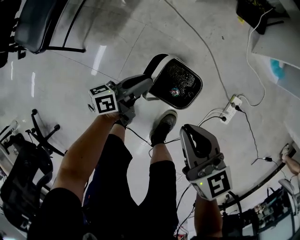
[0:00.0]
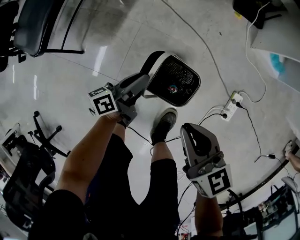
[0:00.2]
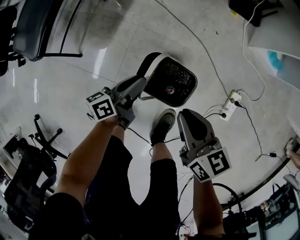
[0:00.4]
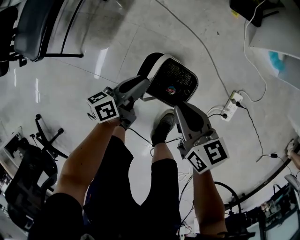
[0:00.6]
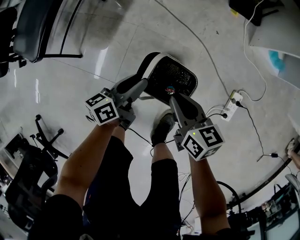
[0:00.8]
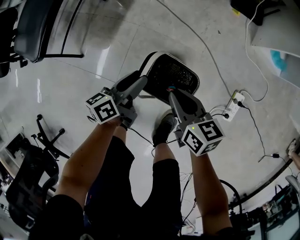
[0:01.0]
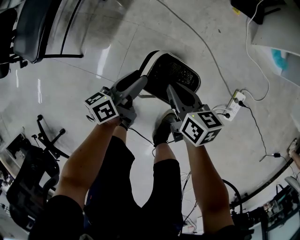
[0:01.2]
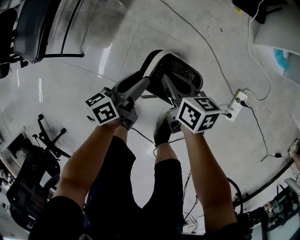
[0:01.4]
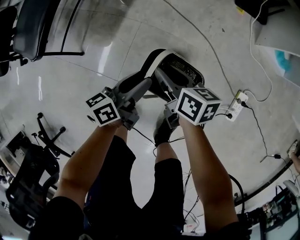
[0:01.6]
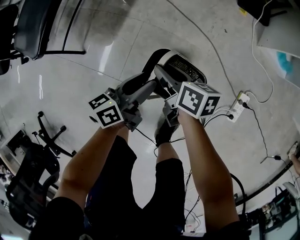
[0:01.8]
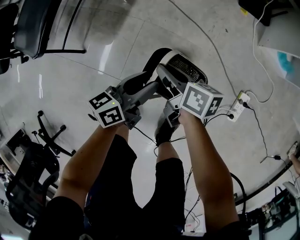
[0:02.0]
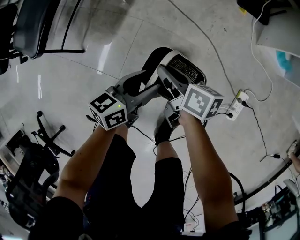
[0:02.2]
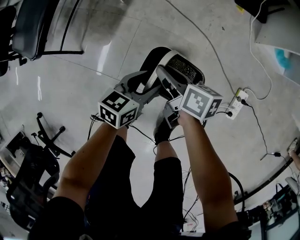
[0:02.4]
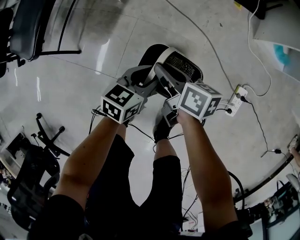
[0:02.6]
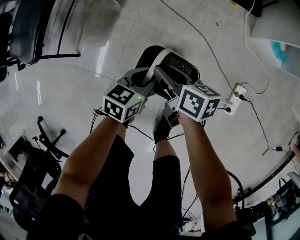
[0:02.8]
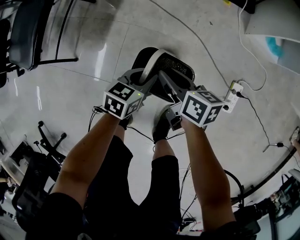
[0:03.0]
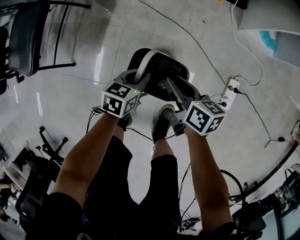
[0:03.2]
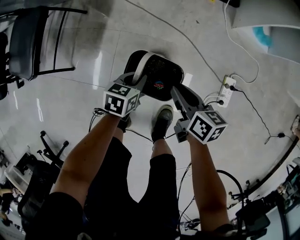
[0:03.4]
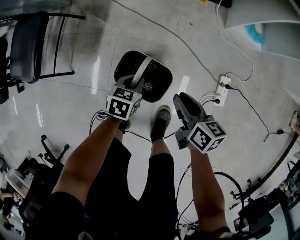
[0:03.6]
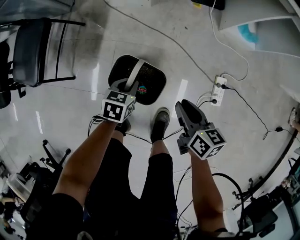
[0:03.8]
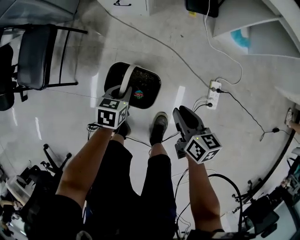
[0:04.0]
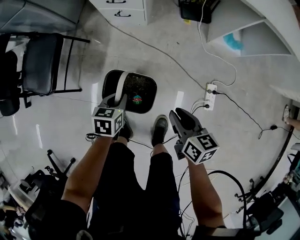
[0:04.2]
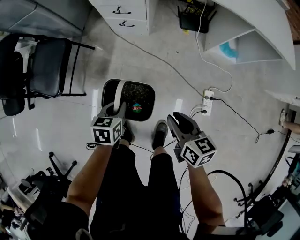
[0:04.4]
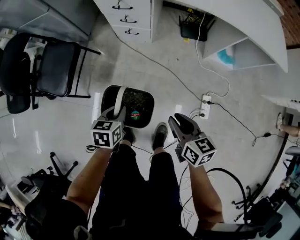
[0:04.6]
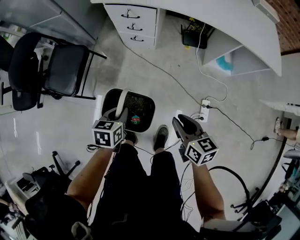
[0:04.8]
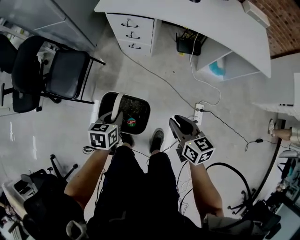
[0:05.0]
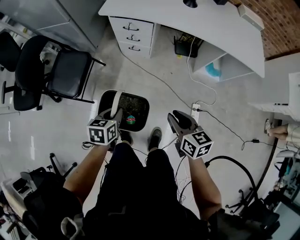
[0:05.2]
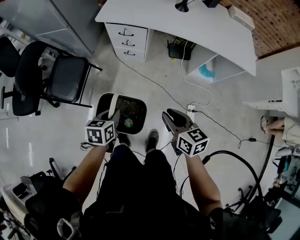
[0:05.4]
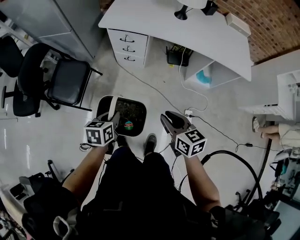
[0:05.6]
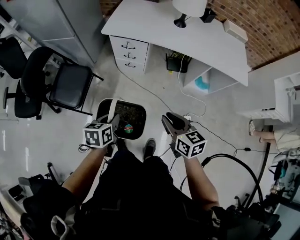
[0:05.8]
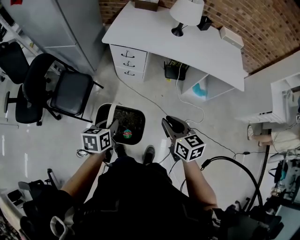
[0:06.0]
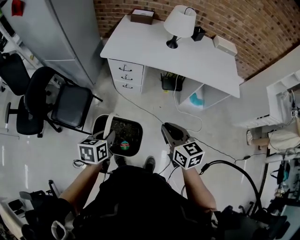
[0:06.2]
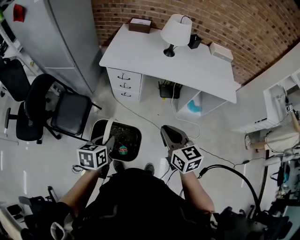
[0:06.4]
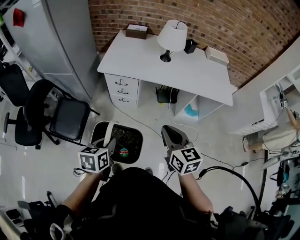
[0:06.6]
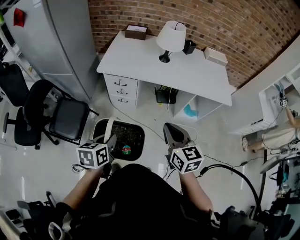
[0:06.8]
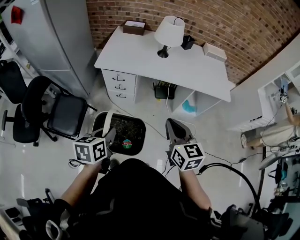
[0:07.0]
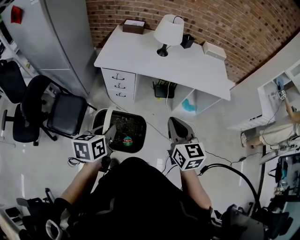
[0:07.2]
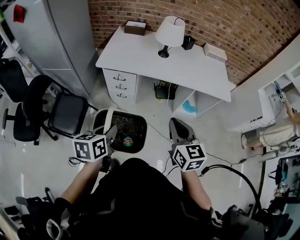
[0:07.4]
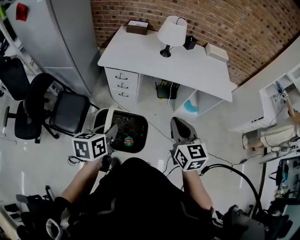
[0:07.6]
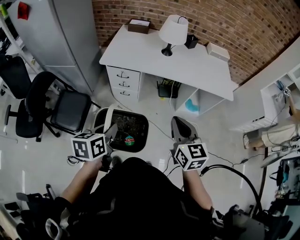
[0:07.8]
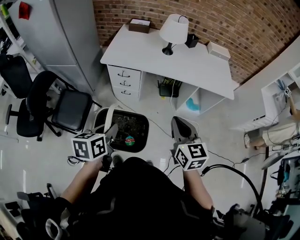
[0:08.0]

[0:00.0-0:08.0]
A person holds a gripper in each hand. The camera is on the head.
0:00.0 to 0:01.6: The left gripper opens up; the right gripper moves downward and forward, about 20 cm, changes its angle by about 30 degrees, and opens up.
0:01.6 to 0:03.2: The right gripper moves to the right, about 10 cm. The left gripper shifts about 5 cm to the right, swivels approximately 40 degrees, and closes its fingers.
0:03.2 to 0:04.8: The two grippers go approximately 35 cm upward. The right gripper rotates approximately 20 degrees.
0:04.8 to 0:06.4: Both grippers travel together upward, some 30 cm. The right gripper rotates about 20 degrees.
0:06.4 to 0:08.0: Both grippers travel together upward, roughly 5 cm.

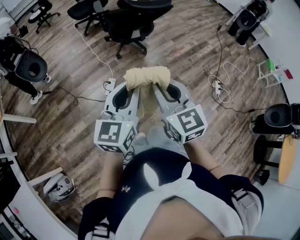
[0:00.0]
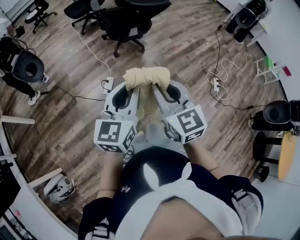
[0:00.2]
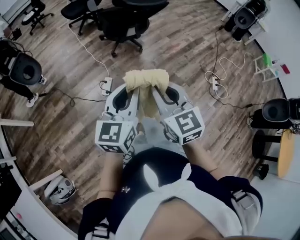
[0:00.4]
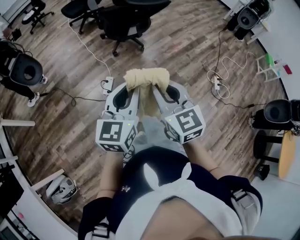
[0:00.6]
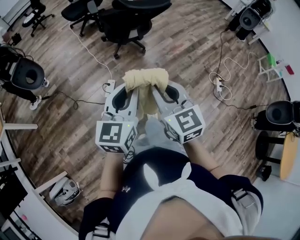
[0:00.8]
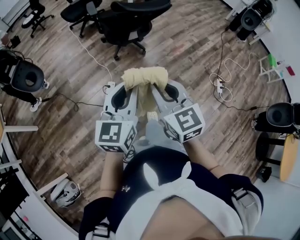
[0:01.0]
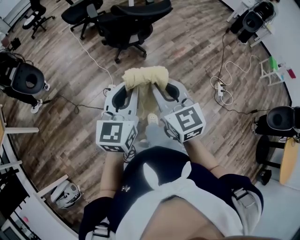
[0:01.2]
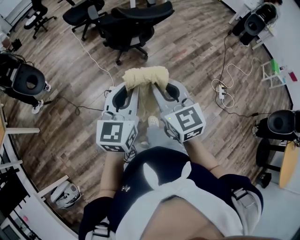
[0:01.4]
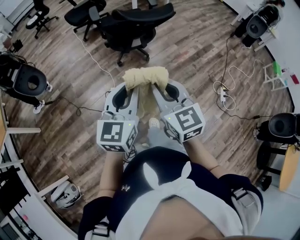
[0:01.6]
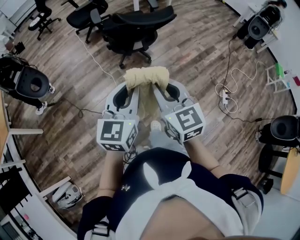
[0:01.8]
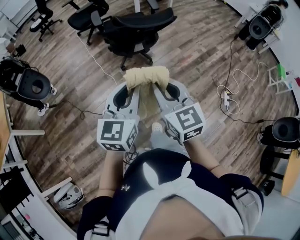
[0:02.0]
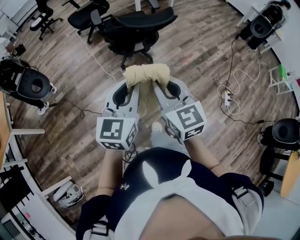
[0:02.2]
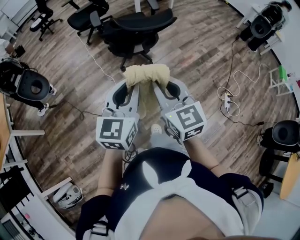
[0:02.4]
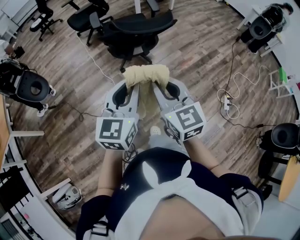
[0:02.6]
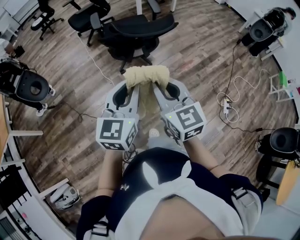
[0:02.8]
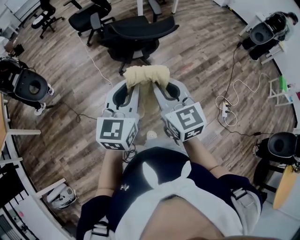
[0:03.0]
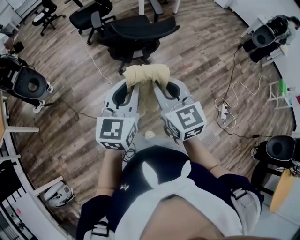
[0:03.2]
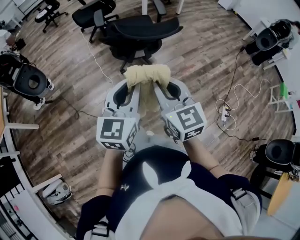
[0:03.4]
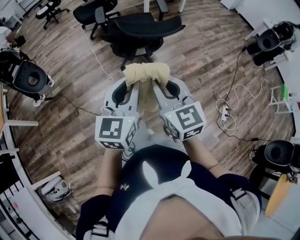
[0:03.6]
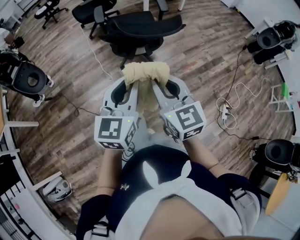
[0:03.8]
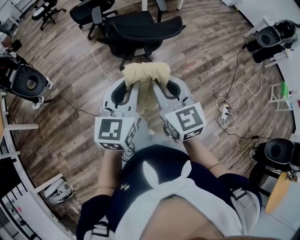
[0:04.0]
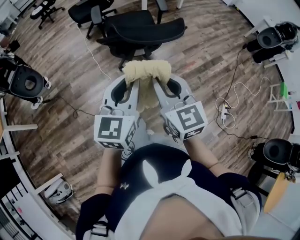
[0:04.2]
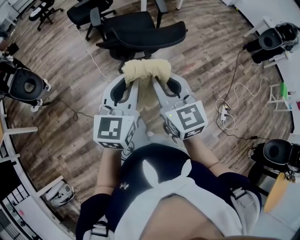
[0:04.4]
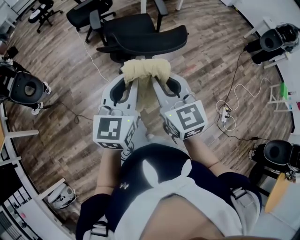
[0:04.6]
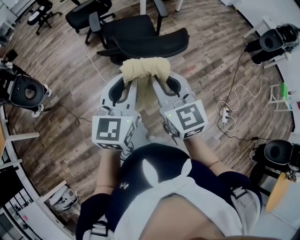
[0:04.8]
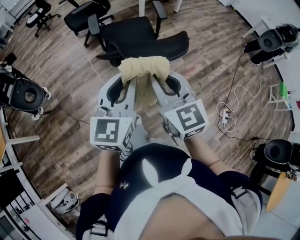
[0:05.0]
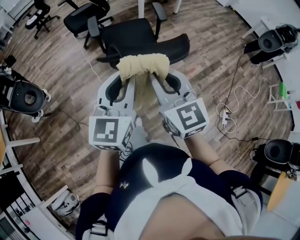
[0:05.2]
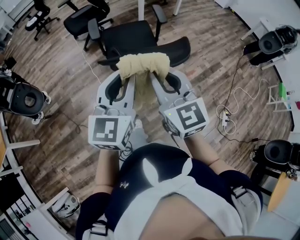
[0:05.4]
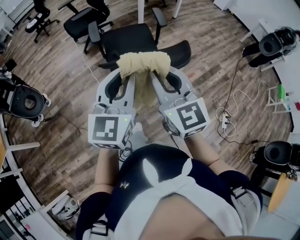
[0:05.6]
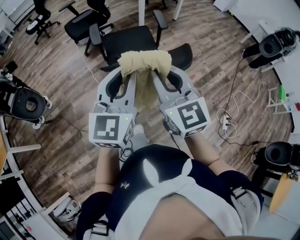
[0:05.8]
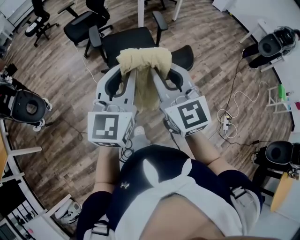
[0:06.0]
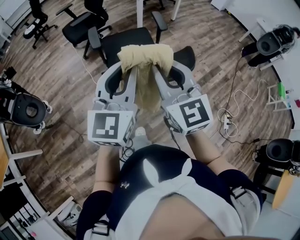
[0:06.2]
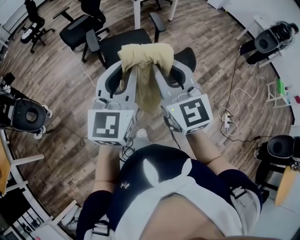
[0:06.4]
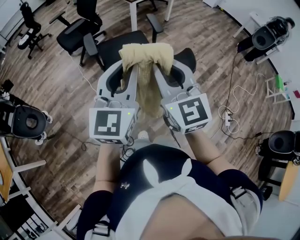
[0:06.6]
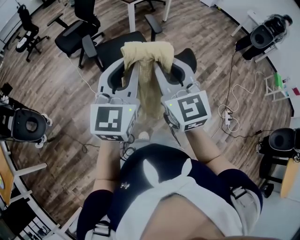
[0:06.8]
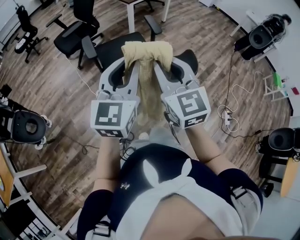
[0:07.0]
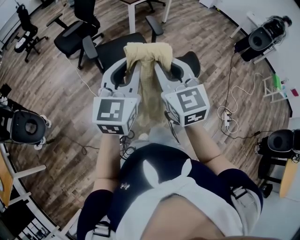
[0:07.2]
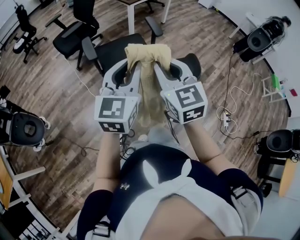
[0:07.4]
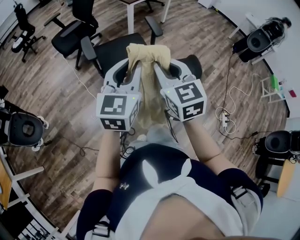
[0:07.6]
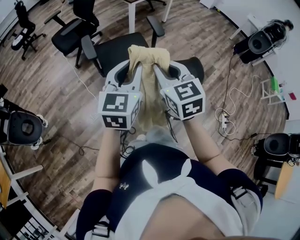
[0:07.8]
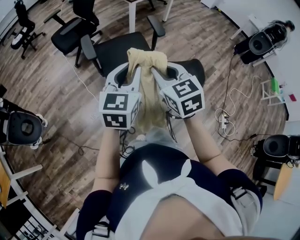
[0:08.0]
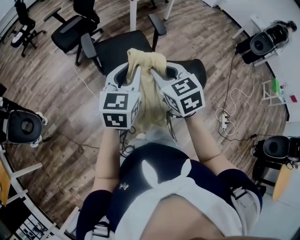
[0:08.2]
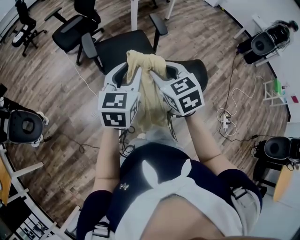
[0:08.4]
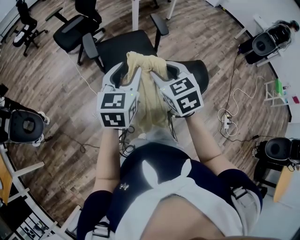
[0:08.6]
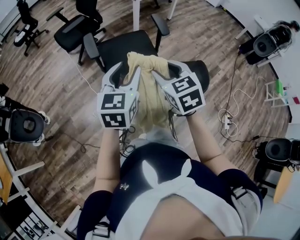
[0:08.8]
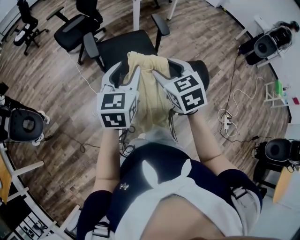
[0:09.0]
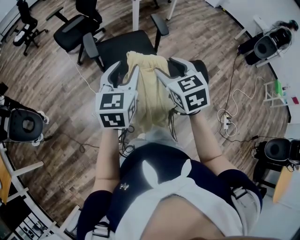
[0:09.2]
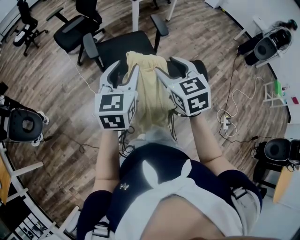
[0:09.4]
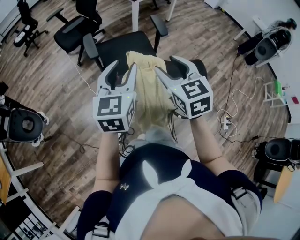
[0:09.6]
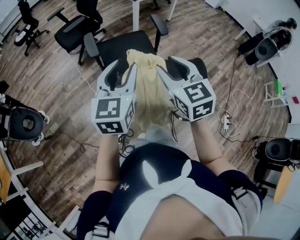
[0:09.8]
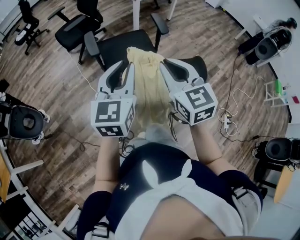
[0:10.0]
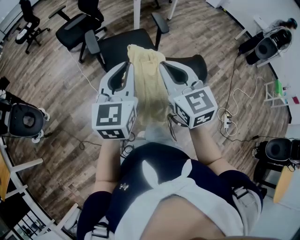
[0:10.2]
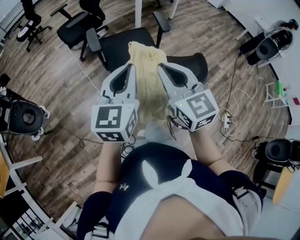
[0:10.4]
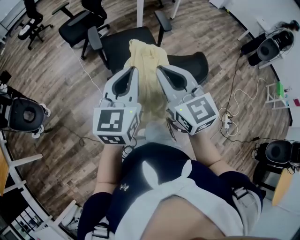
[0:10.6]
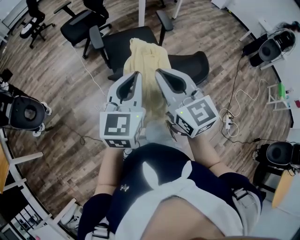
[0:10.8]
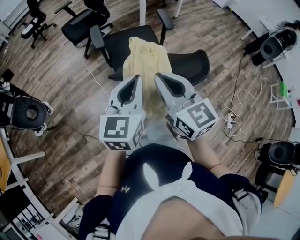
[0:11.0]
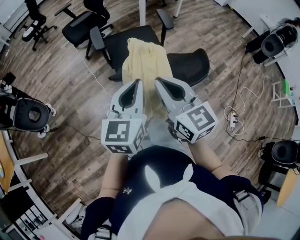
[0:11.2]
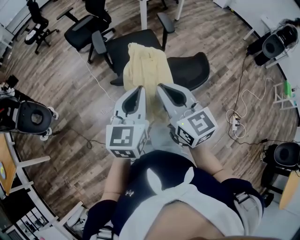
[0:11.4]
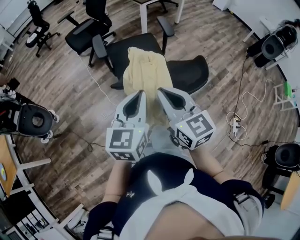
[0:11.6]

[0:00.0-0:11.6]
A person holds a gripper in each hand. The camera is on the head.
0:00.0 to 0:01.4: The two grippers go about 15 cm forward.
0:01.4 to 0:02.8: Both grippers travel together forward and to the right, some 15 cm.
0:02.8 to 0:04.4: The grippers both shift forward by roughly 15 cm.
0:04.4 to 0:05.8: The grippers both shift forward and upward by some 15 cm.
0:05.8 to 0:07.2: Both grippers travel together forward, some 10 cm.
0:07.2 to 0:08.8: The right gripper moves downward and forward, roughly 15 cm, turns by some 20 degrees, and opens up. Meanwhile the left gripper shifts roughly 10 cm forward and downward, and opens its fingers.
0:08.8 to 0:10.2: The left gripper shifts approximately 5 cm backward, and closes its fingers; the right gripper travels upward and backward by roughly 10 cm, turns by about 20 degrees, and closes.
0:10.2 to 0:11.6: The two grippers go approximately 10 cm backward.

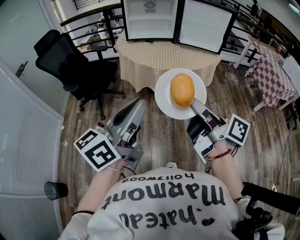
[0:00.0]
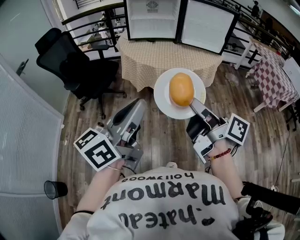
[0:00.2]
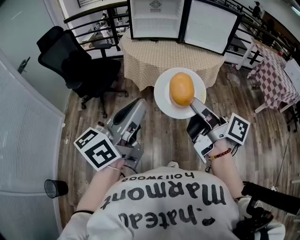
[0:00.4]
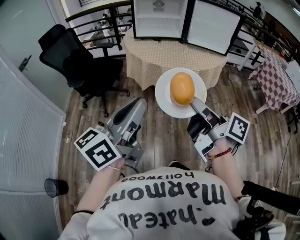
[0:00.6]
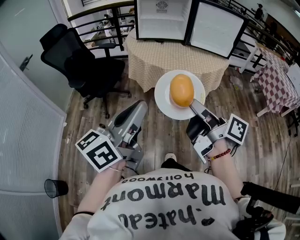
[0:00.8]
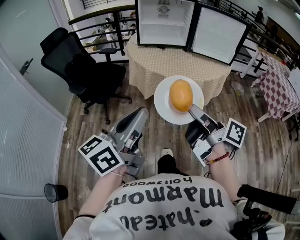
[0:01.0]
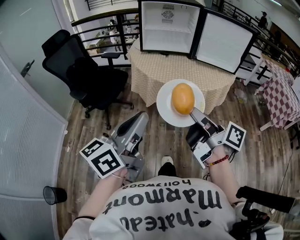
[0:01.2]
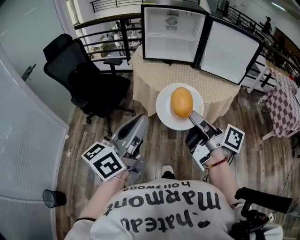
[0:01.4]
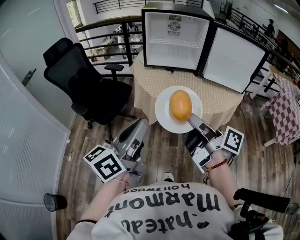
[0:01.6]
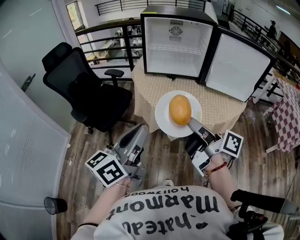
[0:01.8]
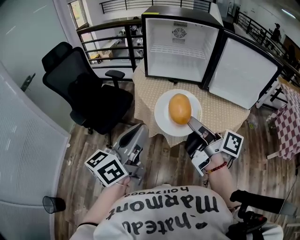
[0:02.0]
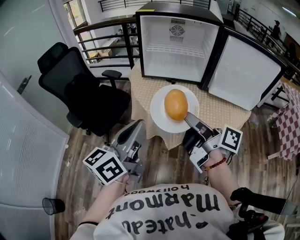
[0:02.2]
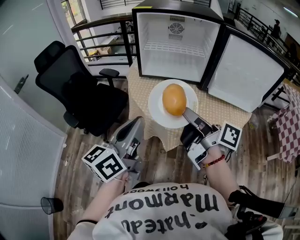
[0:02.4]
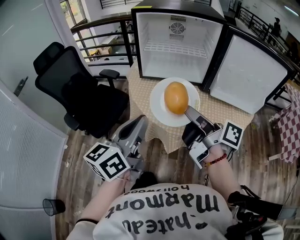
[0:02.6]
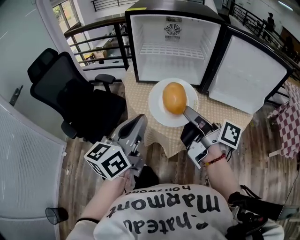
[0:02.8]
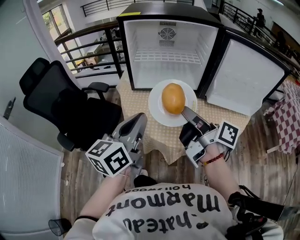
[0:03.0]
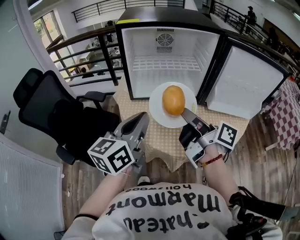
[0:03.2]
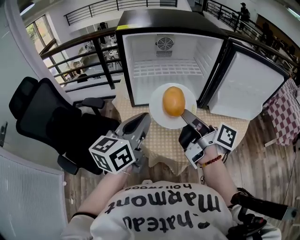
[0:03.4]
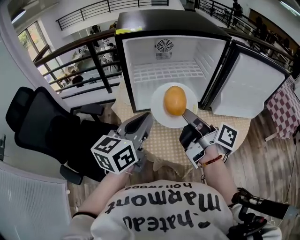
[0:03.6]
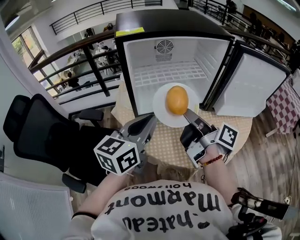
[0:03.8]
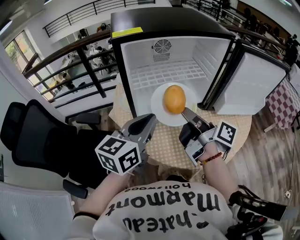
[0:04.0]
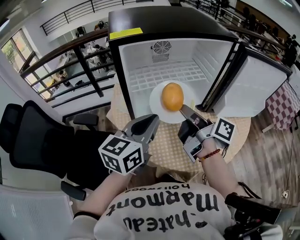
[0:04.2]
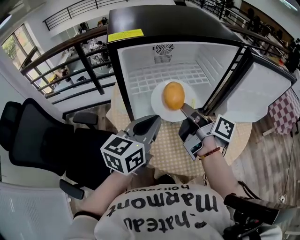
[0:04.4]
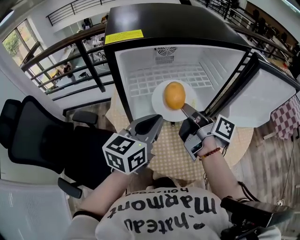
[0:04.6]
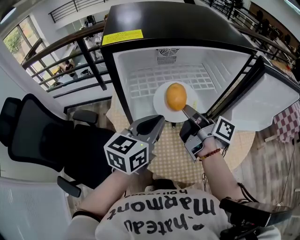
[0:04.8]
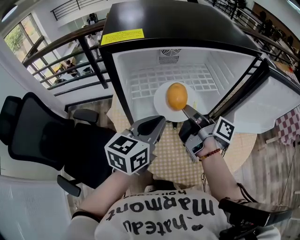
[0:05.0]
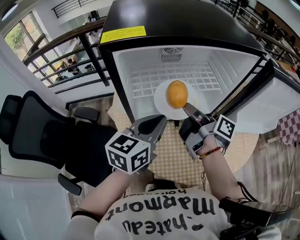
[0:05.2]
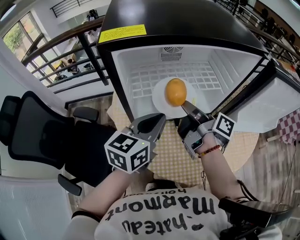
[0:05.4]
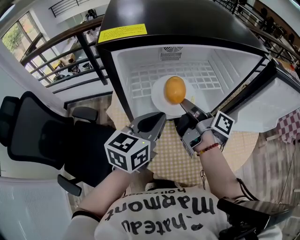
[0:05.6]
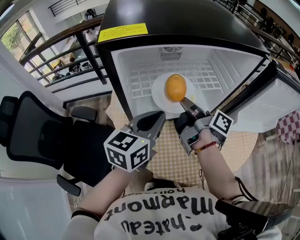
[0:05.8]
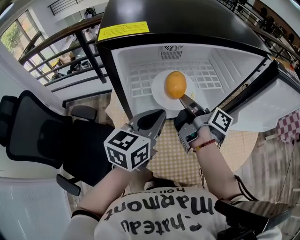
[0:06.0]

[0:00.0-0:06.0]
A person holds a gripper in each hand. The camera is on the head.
0:00.0 to 0:01.6: Both grippers travel together forward, roughly 20 cm.
0:01.6 to 0:03.0: The two grippers go approximately 30 cm forward.
0:03.0 to 0:04.4: Both grippers move forward, about 20 cm. The left gripper swivels approximately 20 degrees.
0:04.4 to 0:06.0: Both grippers move forward, about 10 cm.
